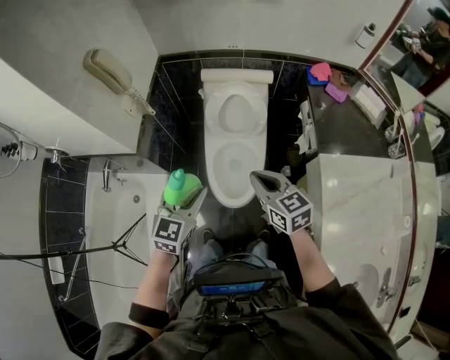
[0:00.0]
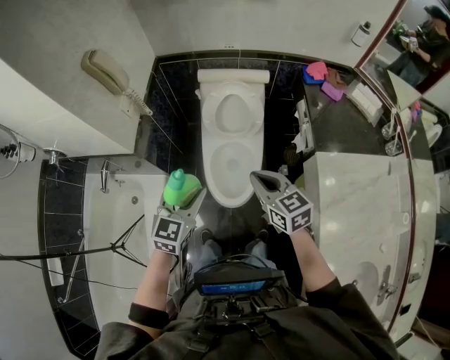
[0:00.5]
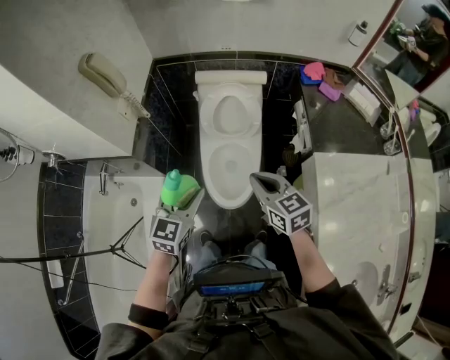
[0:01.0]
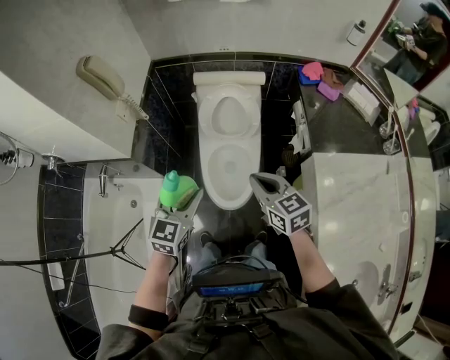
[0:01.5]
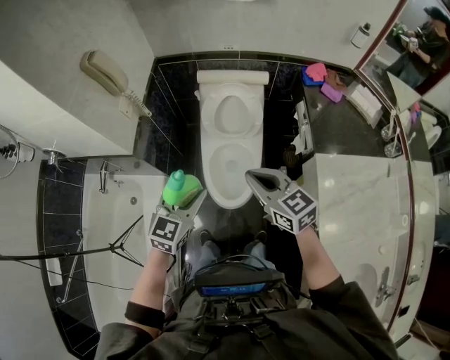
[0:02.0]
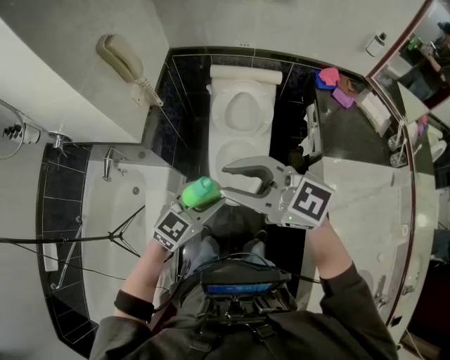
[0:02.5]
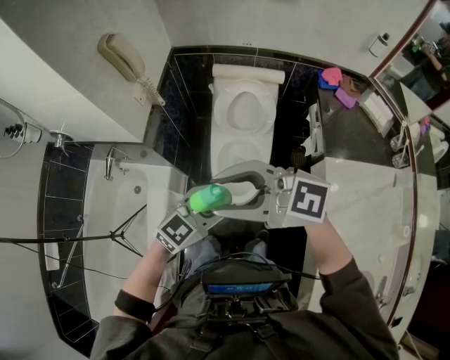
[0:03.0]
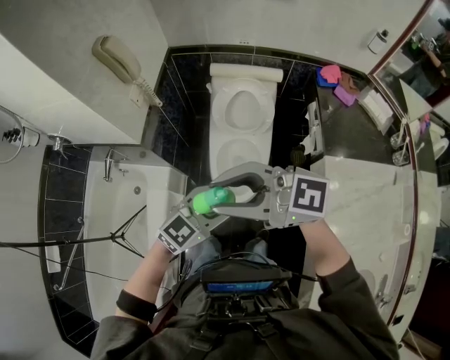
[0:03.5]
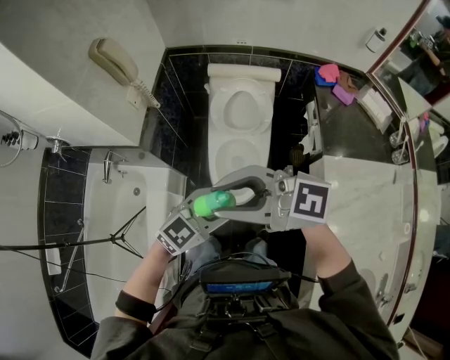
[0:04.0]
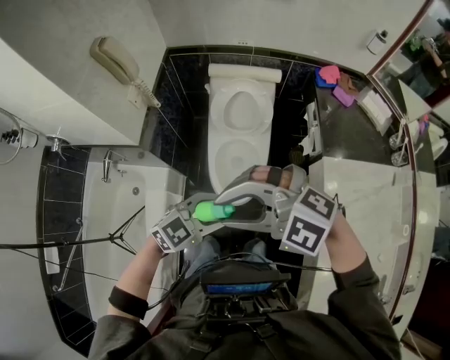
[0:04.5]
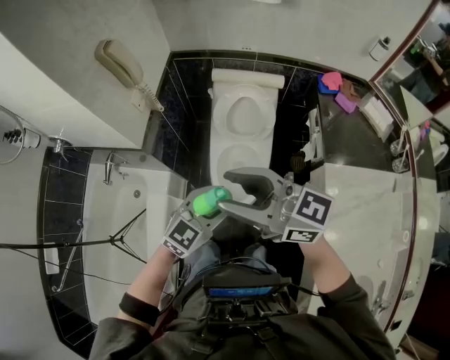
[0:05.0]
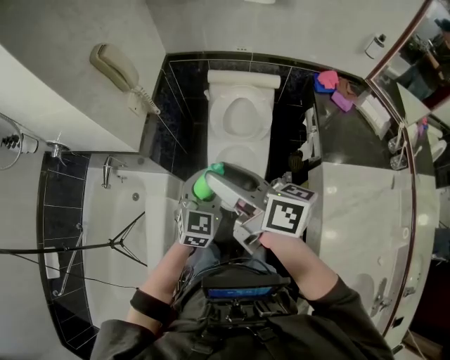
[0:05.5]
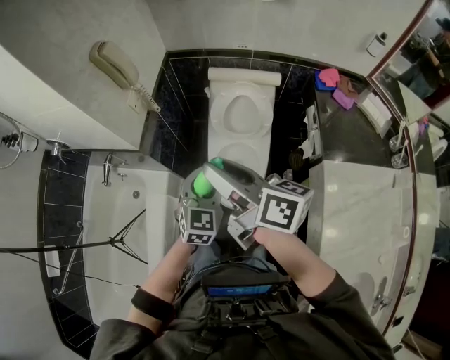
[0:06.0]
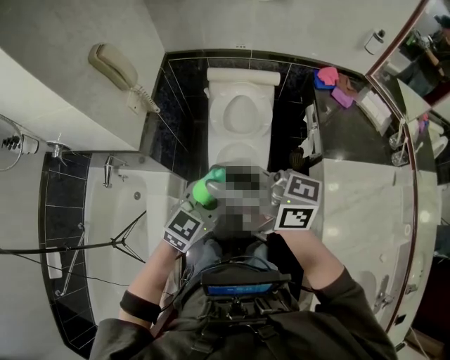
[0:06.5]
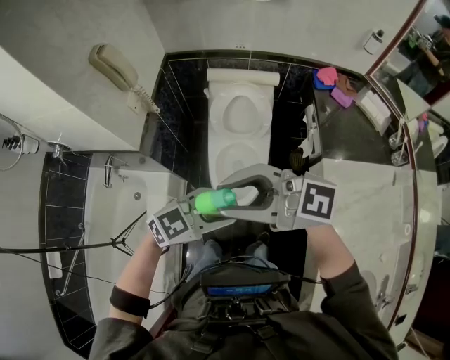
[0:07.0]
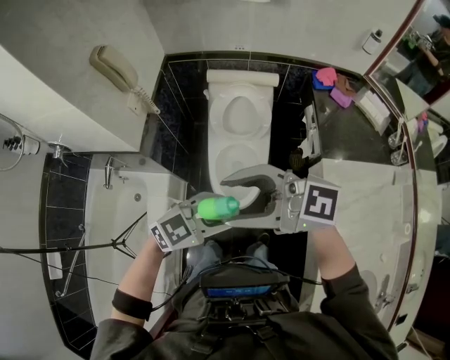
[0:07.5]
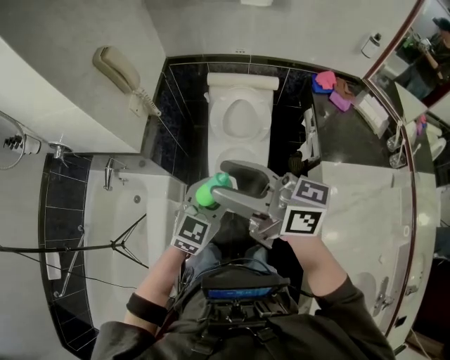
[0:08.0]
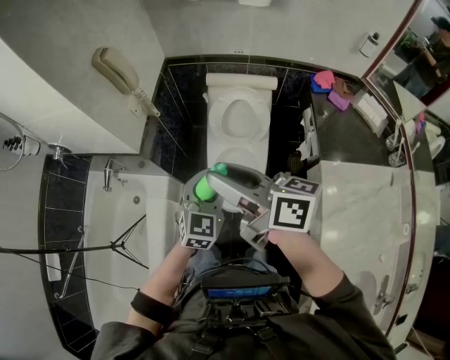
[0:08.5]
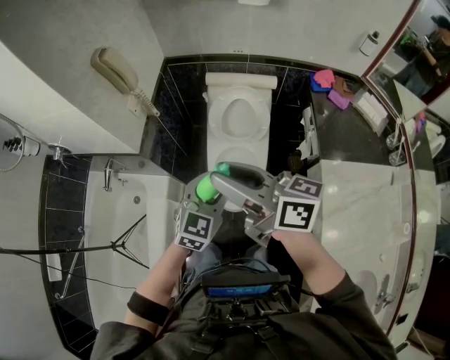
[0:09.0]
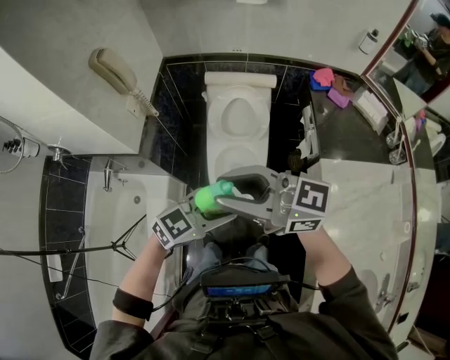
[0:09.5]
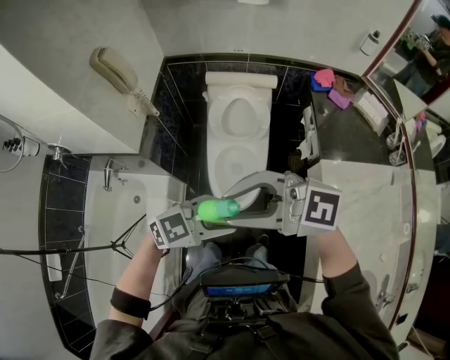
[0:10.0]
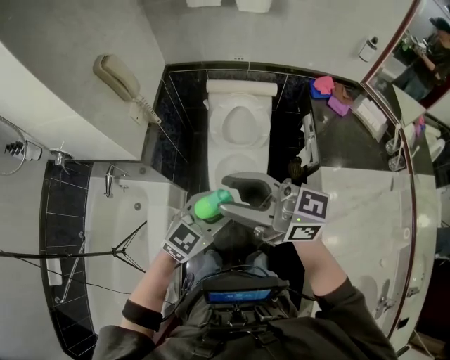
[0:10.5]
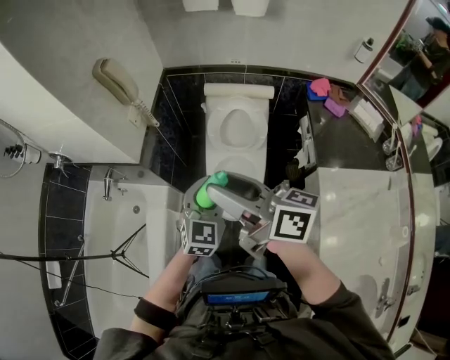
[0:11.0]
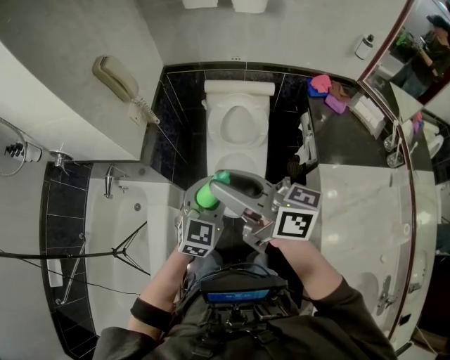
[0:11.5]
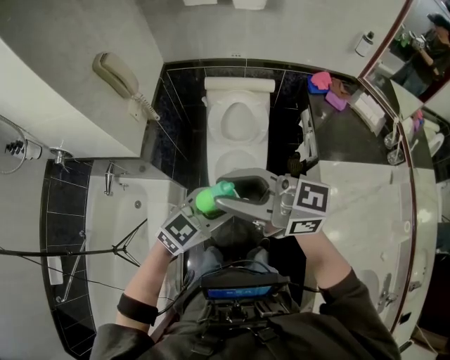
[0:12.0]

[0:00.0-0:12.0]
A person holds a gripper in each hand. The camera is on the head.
0:00.0 to 0:02.0: The grippers stay close to where they were, moving slightly.
0:02.0 to 0:04.0: The right gripper shifts approximately 15 cm upward, turns by approximately 50 degrees, and opens up, while the left gripper moves some 10 cm, and turns by some 30 degrees.
0:04.0 to 0:06.0: The left gripper ends up approximately 10 cm from where it was, and swivels some 40 degrees; the right gripper shifts by approximately 10 cm, and swivels some 60 degrees.
0:06.0 to 0:08.0: The right gripper swivels approximately 20 degrees, and opens its fingers.
0:08.0 to 0:10.0: The left gripper changes place by approximately 10 cm, and turns by about 50 degrees, while the right gripper shifts by about 10 cm, rotates approximately 50 degrees, and closes its fingers.
0:10.0 to 0:12.0: The right gripper rotates about 30 degrees, while the left gripper turns by about 20 degrees.

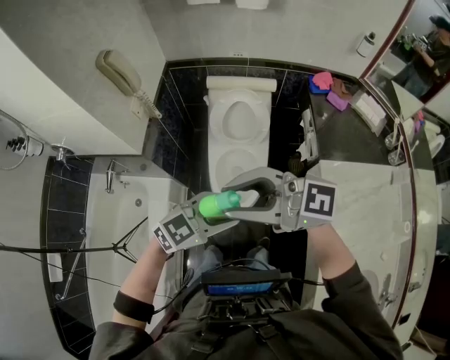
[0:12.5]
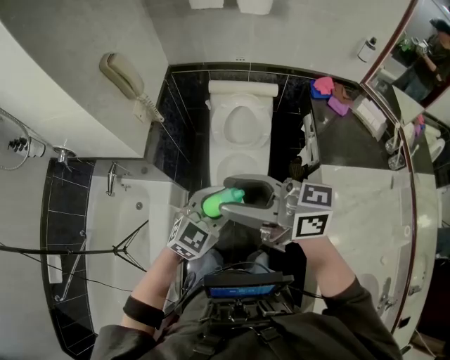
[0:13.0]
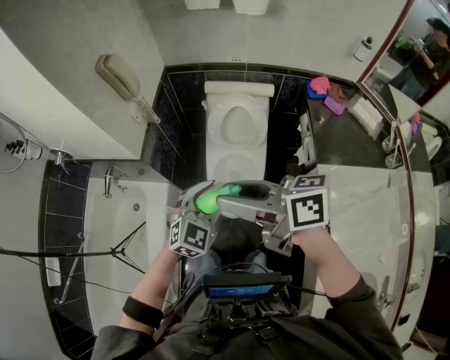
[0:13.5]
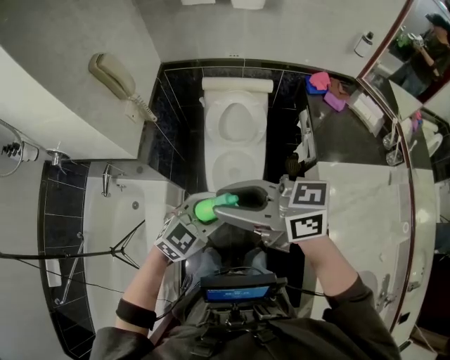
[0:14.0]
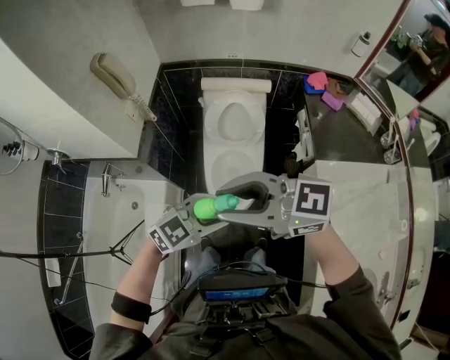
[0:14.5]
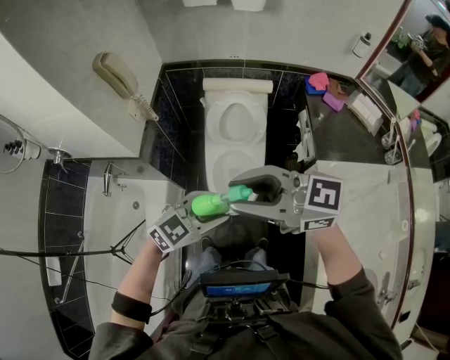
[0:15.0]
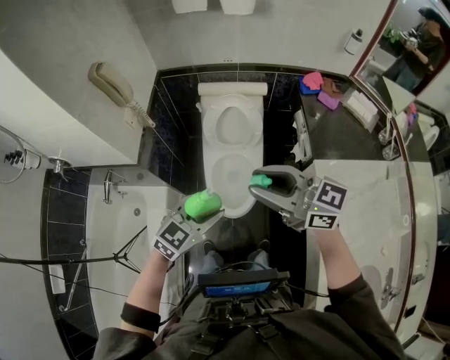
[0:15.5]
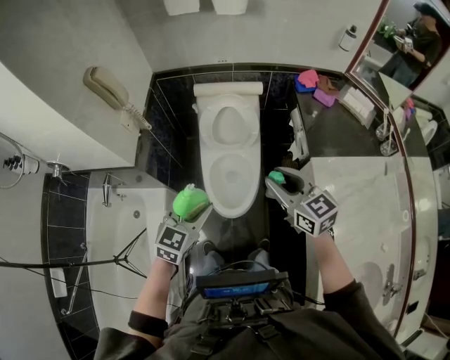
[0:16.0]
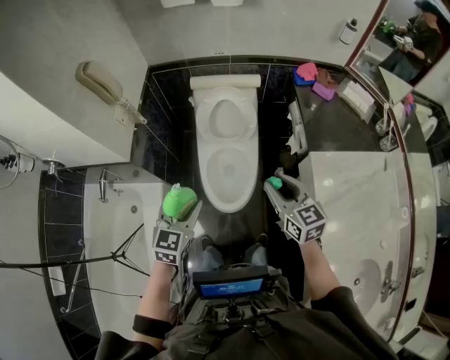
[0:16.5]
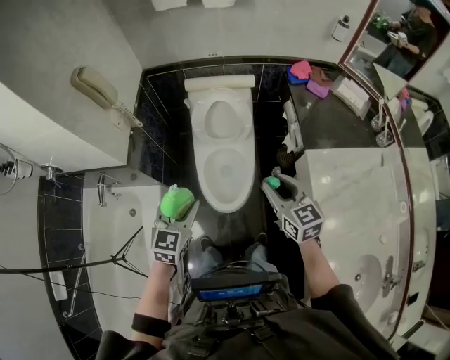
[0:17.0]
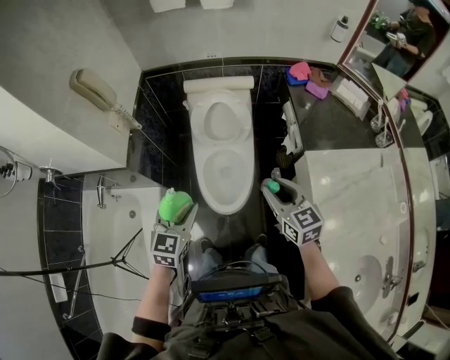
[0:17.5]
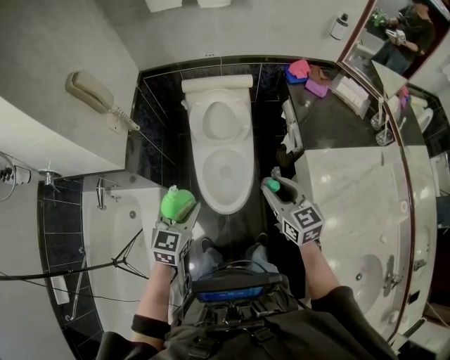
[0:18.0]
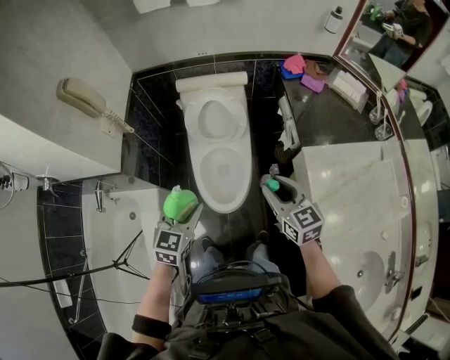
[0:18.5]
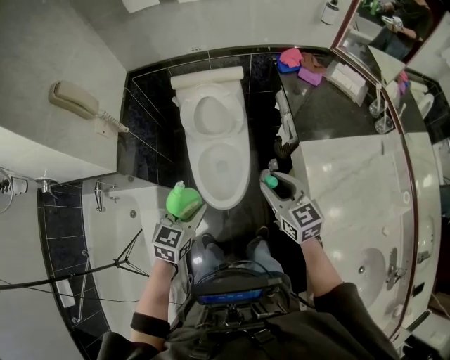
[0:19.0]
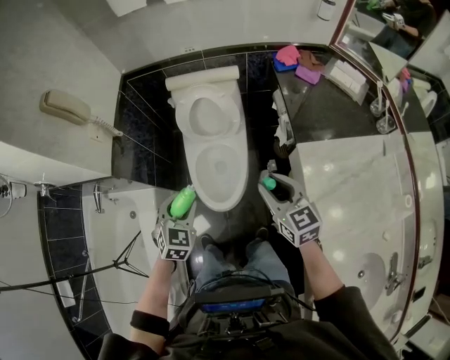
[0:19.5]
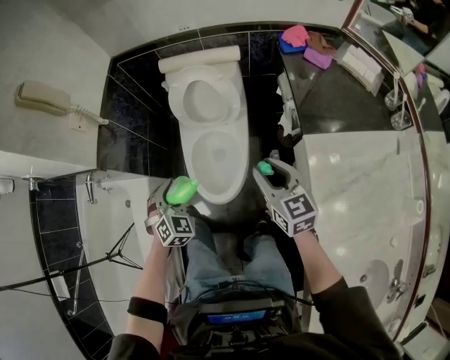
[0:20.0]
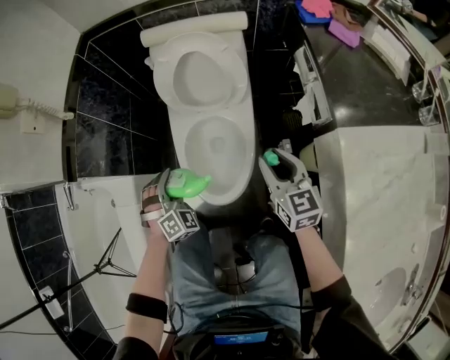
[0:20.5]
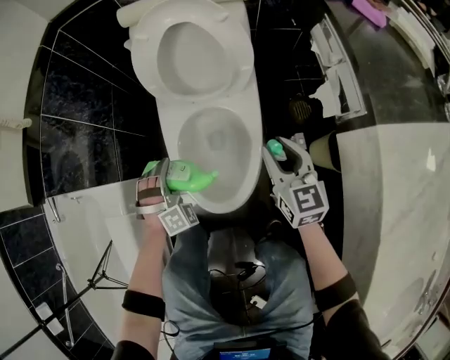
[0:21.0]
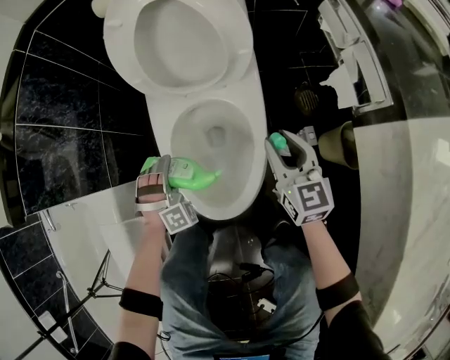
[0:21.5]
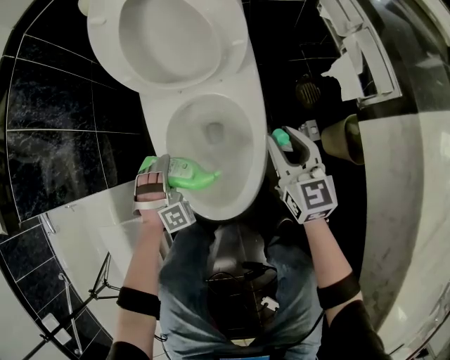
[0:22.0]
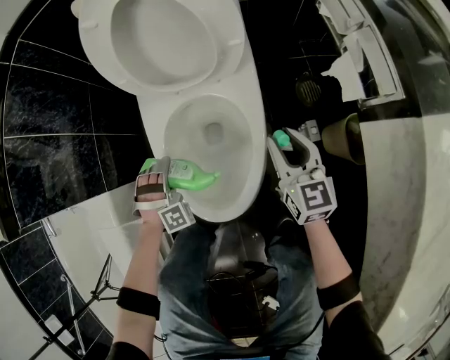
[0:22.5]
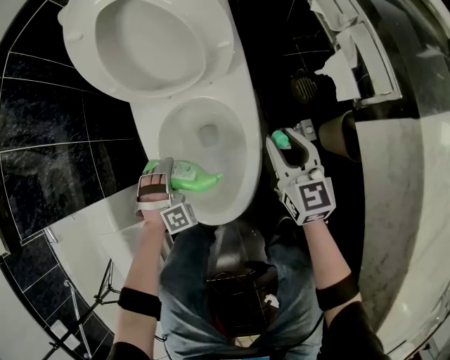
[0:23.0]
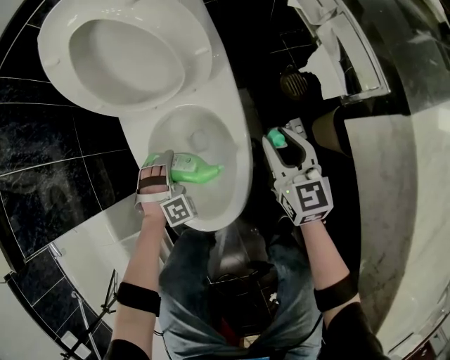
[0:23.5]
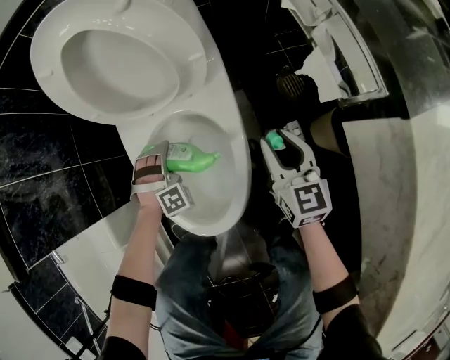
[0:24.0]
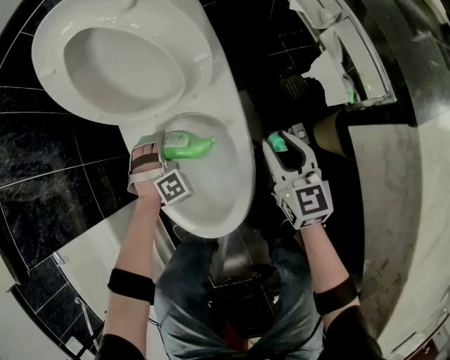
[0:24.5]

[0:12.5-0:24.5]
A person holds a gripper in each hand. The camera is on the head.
0:12.5 to 0:14.5: The right gripper opens, then closes once more.
0:14.5 to 0:16.5: The right gripper heads downward, covering approximately 20 cm, and changes its angle by approximately 60 degrees, while the left gripper shifts by about 10 cm, and changes its angle by approximately 40 degrees.
0:16.5 to 0:18.5: The grippers stay close to where they were, moving slightly.
0:18.5 to 0:20.5: The two grippers go roughly 30 cm downward and forward. The left gripper rotates around the line of its fingers by some 50 degrees, clockwise from behind.
0:20.5 to 0:22.5: The two grippers go approximately 25 cm downward. The left gripper rotates roughly 30 degrees.
0:22.5 to 0:24.5: The left gripper heads forward and to the right, covering approximately 15 cm. Meanwhile the right gripper moves roughly 5 cm.

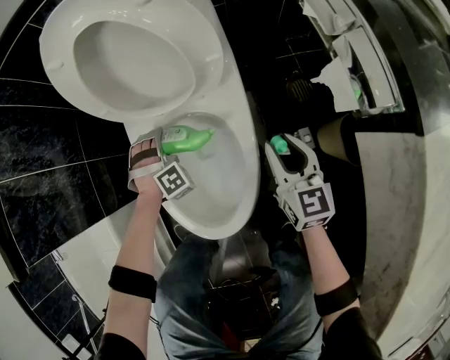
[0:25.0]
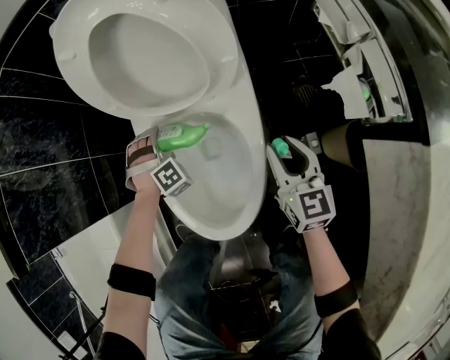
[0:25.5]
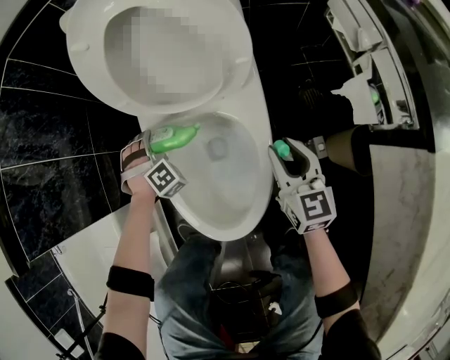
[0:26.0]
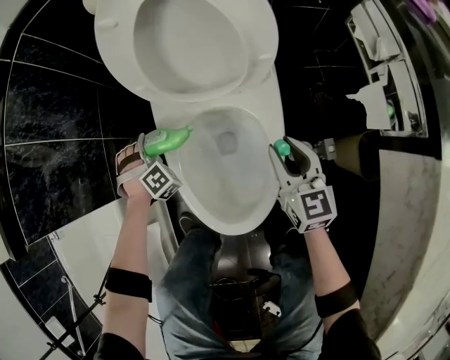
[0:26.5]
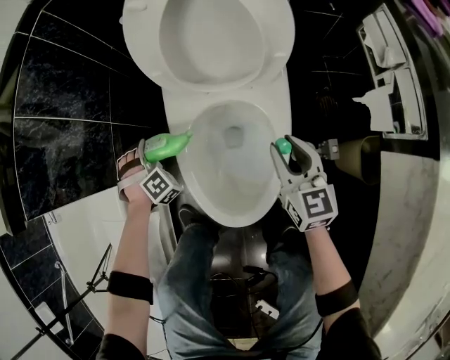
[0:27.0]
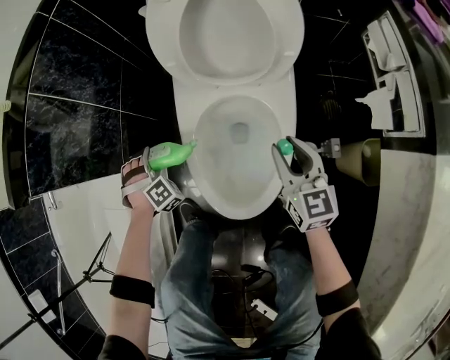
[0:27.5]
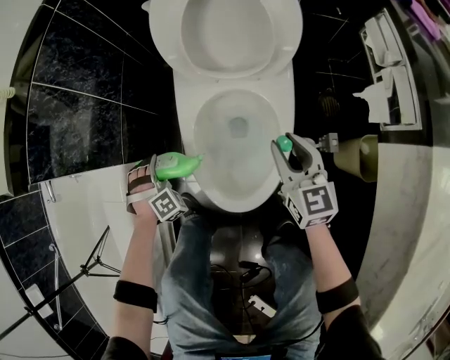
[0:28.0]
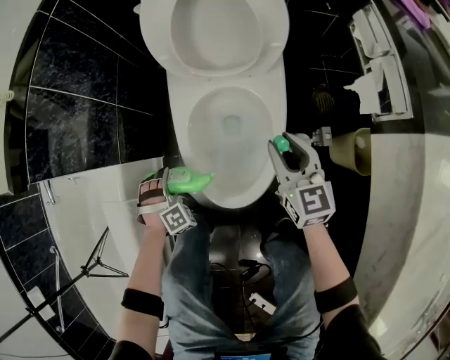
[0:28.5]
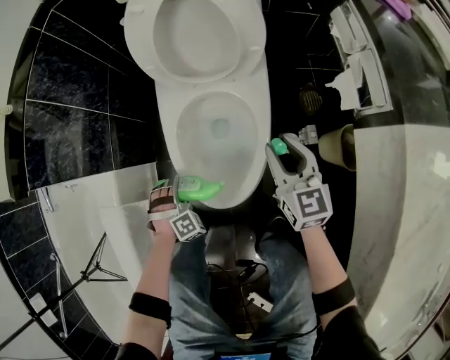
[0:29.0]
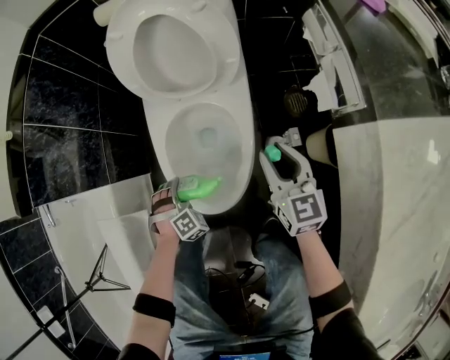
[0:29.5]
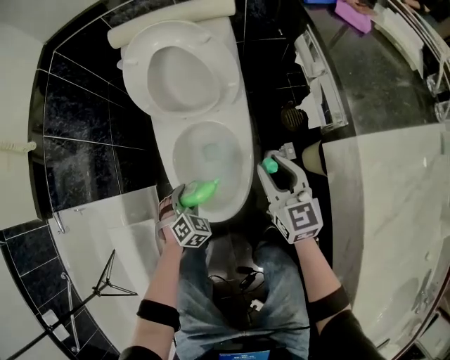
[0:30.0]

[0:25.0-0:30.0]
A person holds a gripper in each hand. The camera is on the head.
0:25.0 to 0:27.5: The right gripper travels to the left by some 10 cm. The left gripper is displaced to the left by some 25 cm, and changes its angle by roughly 20 degrees.
0:27.5 to 0:30.0: The right gripper heads upward, backward and to the right, covering roughly 15 cm, while the left gripper shifts some 25 cm to the right, backward and upward, and changes its angle by roughly 40 degrees.
